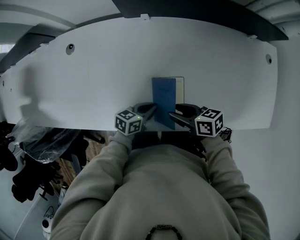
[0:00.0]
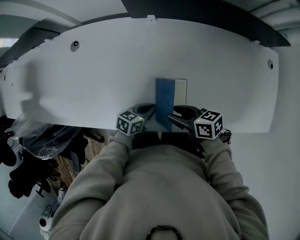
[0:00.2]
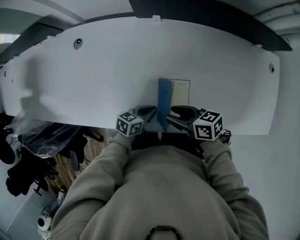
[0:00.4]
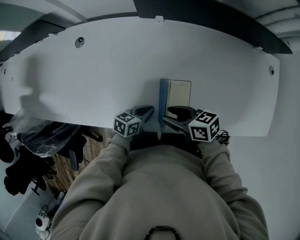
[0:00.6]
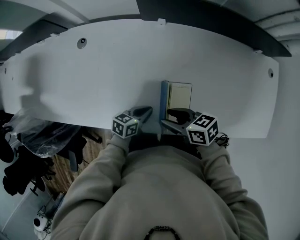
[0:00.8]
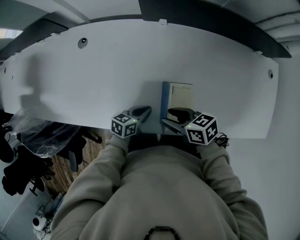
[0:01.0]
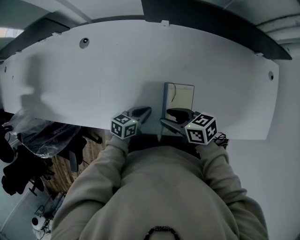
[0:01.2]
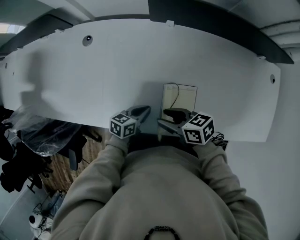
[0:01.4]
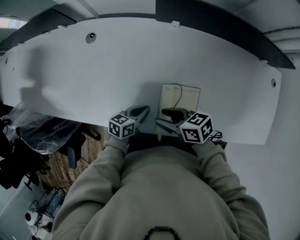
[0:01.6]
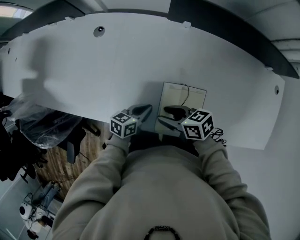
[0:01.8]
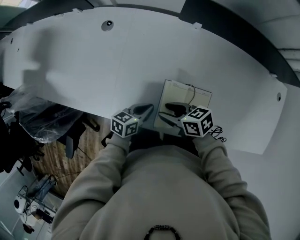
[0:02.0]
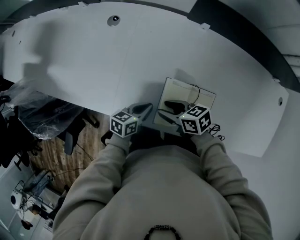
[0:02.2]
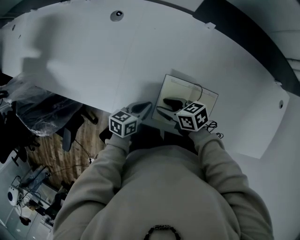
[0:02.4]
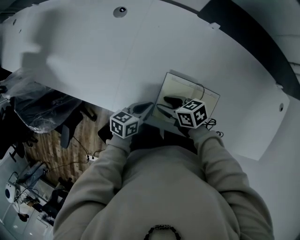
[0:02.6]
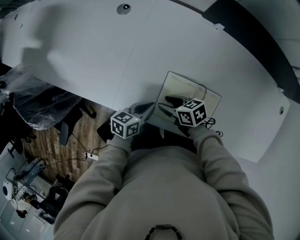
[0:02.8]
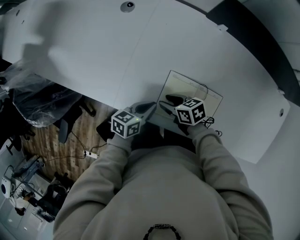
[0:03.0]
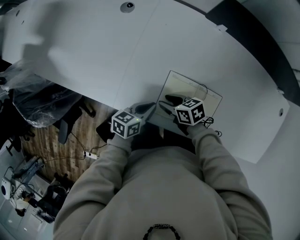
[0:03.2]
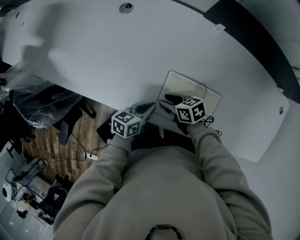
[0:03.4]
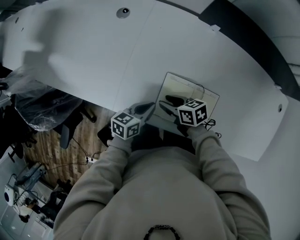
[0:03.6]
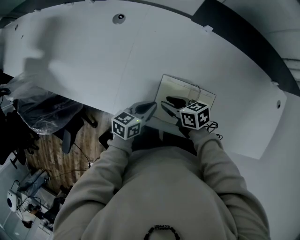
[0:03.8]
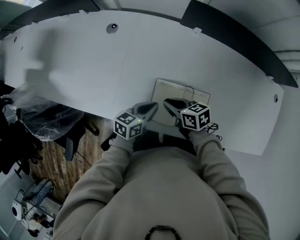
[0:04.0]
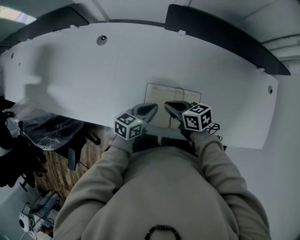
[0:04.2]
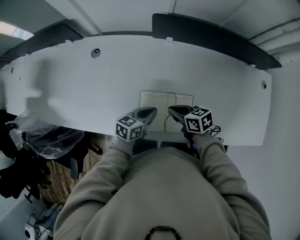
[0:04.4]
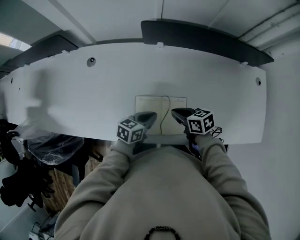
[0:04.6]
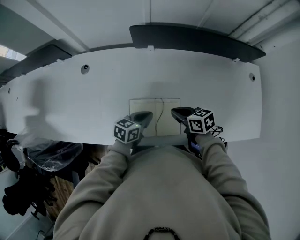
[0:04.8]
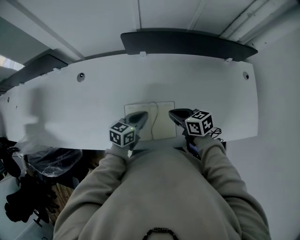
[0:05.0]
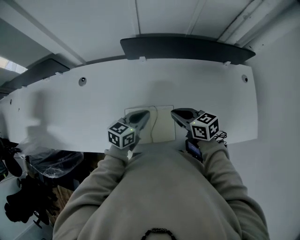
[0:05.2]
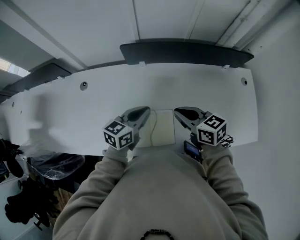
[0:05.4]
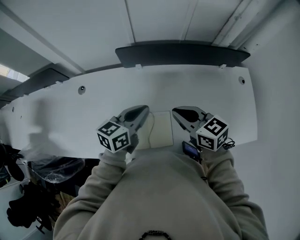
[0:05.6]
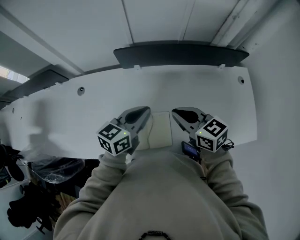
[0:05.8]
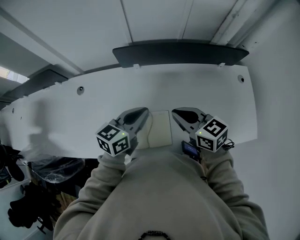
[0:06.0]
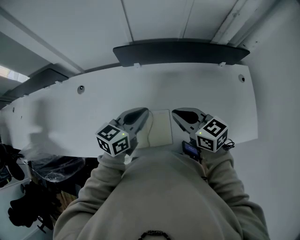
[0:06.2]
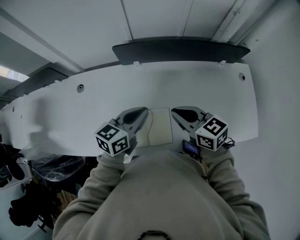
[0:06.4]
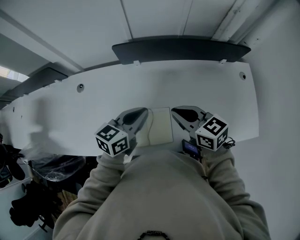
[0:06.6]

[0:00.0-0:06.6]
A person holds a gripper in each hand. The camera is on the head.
0:00.0 to 0:01.6: The left gripper ends up about 10 cm from where it was. Meanwhile the right gripper shifts by approximately 15 cm.
0:01.6 to 0:03.2: The right gripper is displaced downward by about 15 cm. The left gripper shifts by roughly 10 cm.
0:03.2 to 0:05.0: The left gripper ends up roughly 20 cm from where it was, and changes its angle by about 30 degrees. The right gripper moves about 30 cm, turns by about 30 degrees, and closes its fingers.
0:05.0 to 0:06.6: Both grippers move upward, roughly 15 cm. The right gripper swivels roughly 20 degrees.

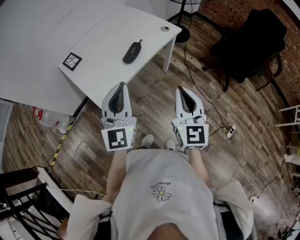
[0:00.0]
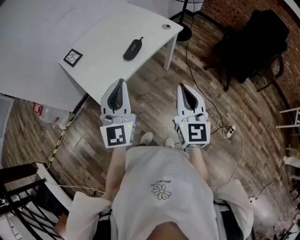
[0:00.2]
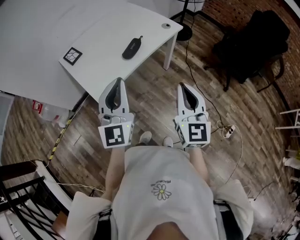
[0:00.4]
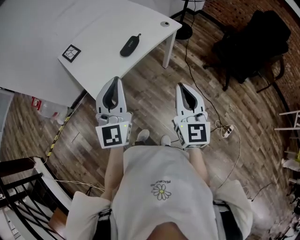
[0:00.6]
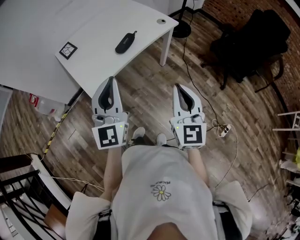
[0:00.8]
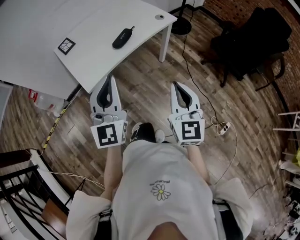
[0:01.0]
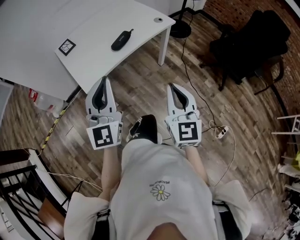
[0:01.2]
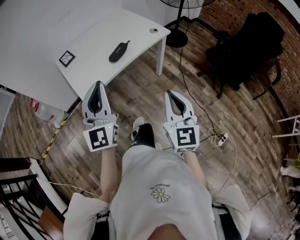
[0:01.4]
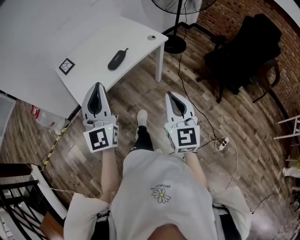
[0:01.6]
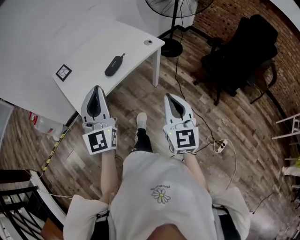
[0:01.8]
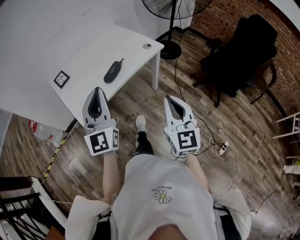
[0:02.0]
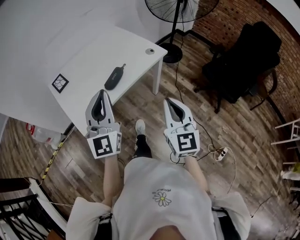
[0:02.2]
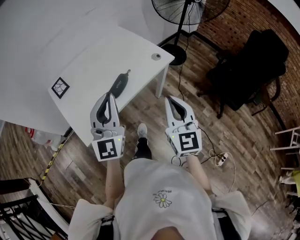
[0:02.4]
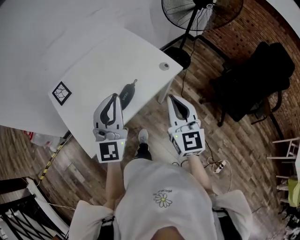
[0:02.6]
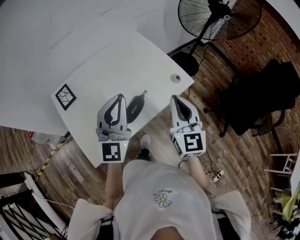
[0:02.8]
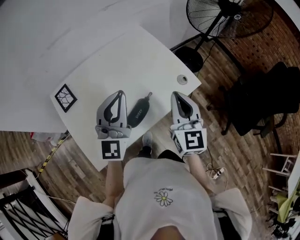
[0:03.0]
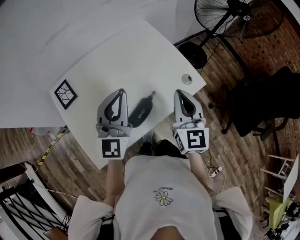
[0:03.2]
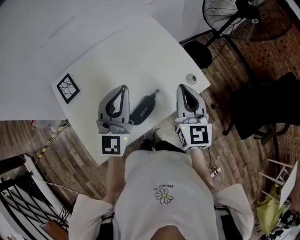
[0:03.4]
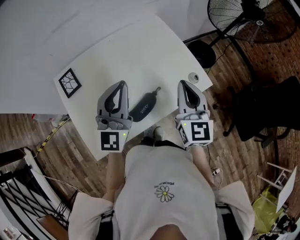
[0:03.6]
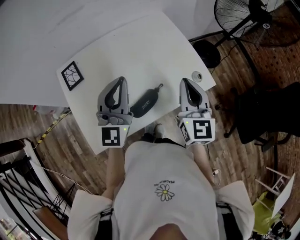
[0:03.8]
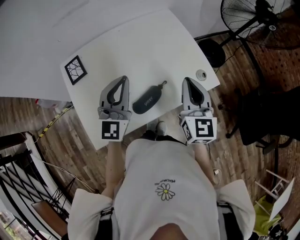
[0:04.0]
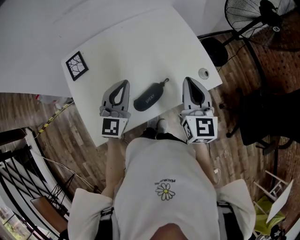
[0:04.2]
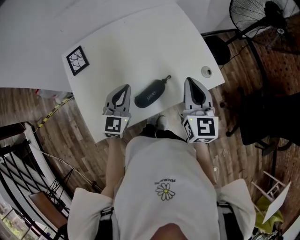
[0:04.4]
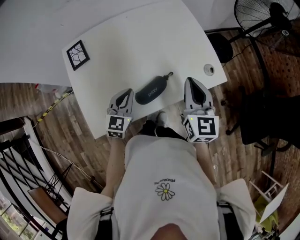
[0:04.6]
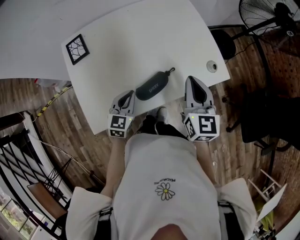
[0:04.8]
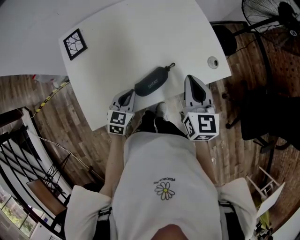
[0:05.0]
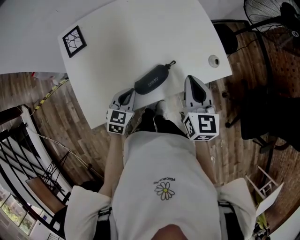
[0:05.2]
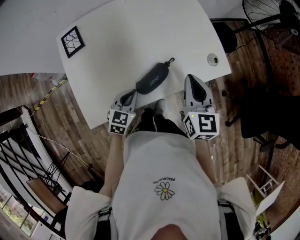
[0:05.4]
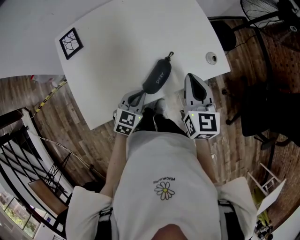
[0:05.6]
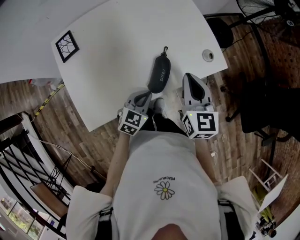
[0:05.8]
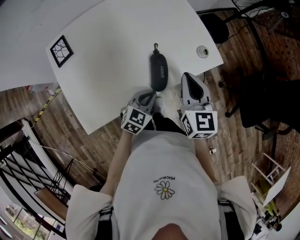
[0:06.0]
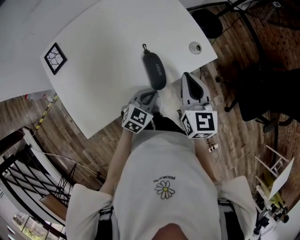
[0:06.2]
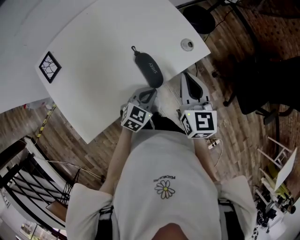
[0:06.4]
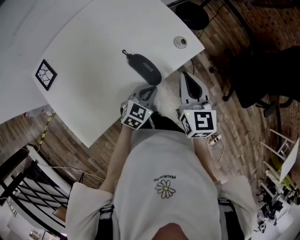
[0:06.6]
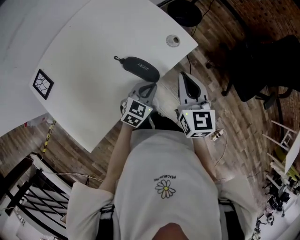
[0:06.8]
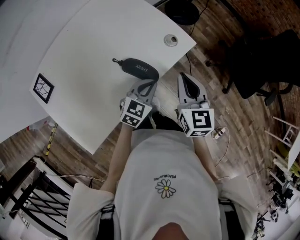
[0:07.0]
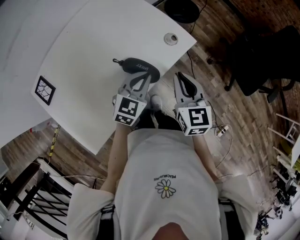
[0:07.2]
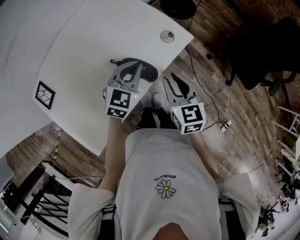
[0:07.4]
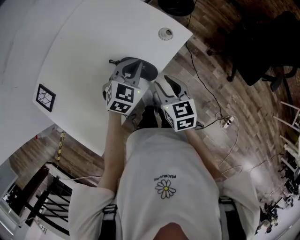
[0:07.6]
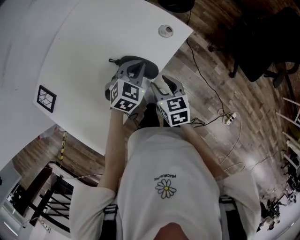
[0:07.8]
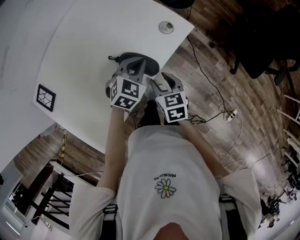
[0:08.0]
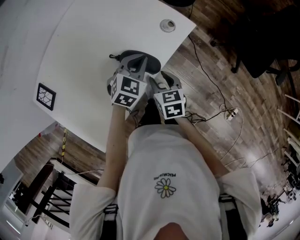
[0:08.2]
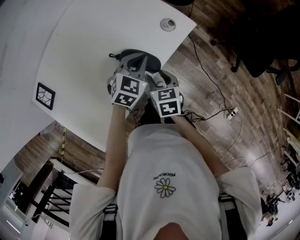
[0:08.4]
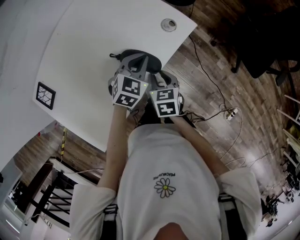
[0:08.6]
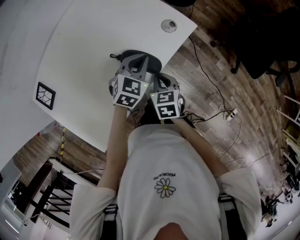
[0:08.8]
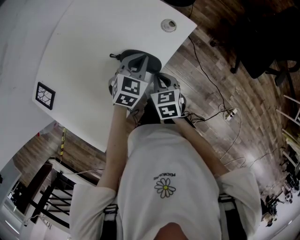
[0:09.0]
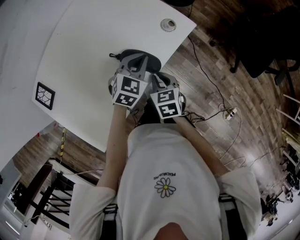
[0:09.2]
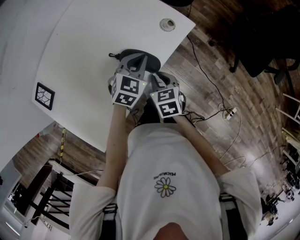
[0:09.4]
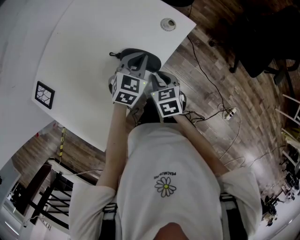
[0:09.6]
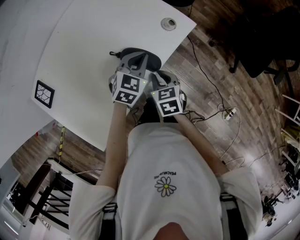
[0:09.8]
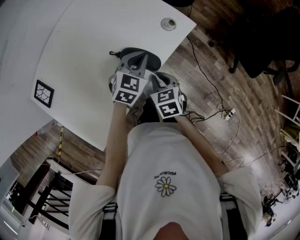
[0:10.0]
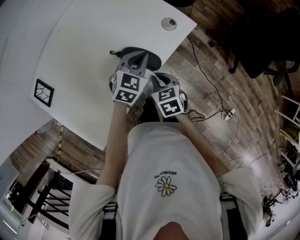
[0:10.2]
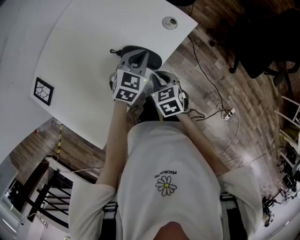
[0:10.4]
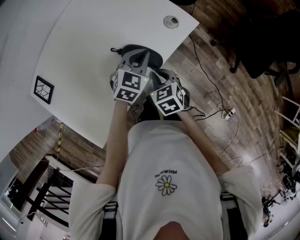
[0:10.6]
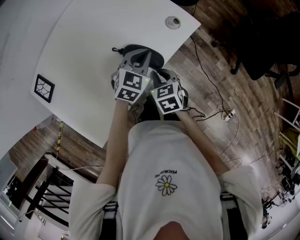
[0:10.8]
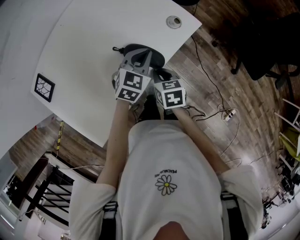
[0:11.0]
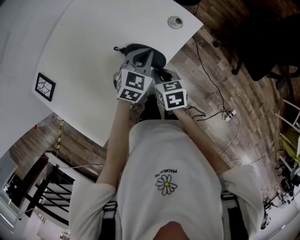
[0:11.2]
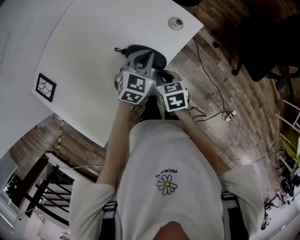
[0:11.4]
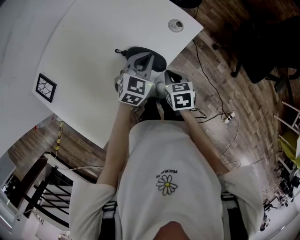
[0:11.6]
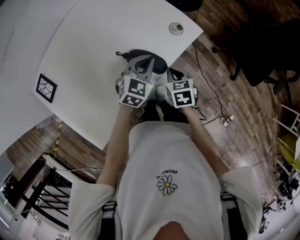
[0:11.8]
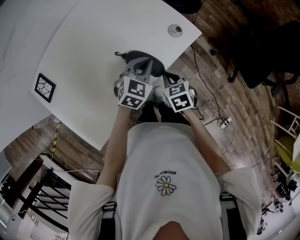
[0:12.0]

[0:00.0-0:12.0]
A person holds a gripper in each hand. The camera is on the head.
0:00.0 to 0:01.6: The left gripper travels to the right by some 5 cm, while the right gripper goes roughly 10 cm to the right.
0:01.6 to 0:03.0: Both grippers move forward, some 40 cm.
0:03.0 to 0:04.4: The left gripper moves downward, roughly 20 cm, and rotates some 30 degrees; the right gripper ends up about 5 cm from where it was.
0:04.4 to 0:06.0: The left gripper shifts about 20 cm to the right, downward and backward, and swivels roughly 30 degrees; the right gripper shifts some 5 cm downward.
0:06.0 to 0:07.6: The right gripper travels downward by approximately 10 cm, rotates approximately 20 degrees, and opens its fingers. Meanwhile the left gripper heads forward and upward, covering some 15 cm, and rotates about 20 degrees.
0:07.6 to 0:09.0: The right gripper moves downward, approximately 5 cm, and closes up.
0:09.0 to 0:12.0: There are only small adjustments of the grippers.

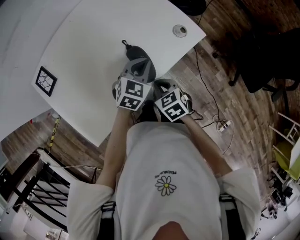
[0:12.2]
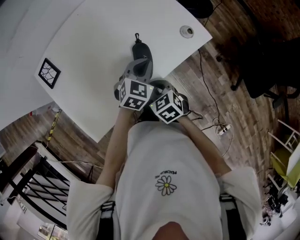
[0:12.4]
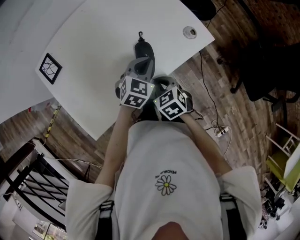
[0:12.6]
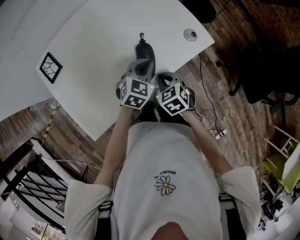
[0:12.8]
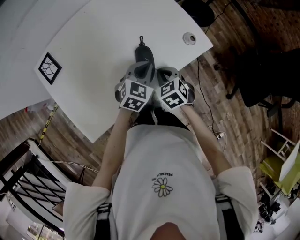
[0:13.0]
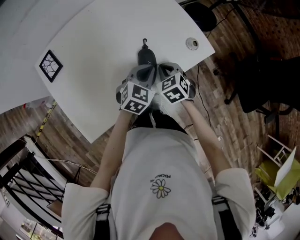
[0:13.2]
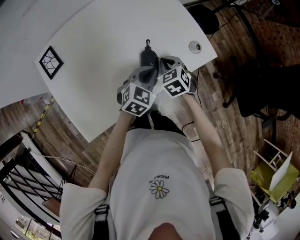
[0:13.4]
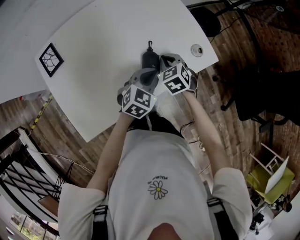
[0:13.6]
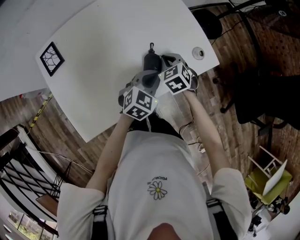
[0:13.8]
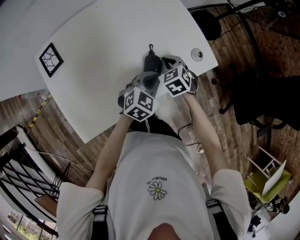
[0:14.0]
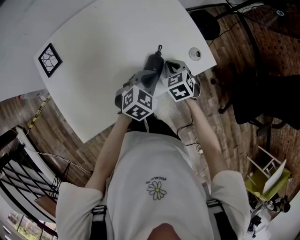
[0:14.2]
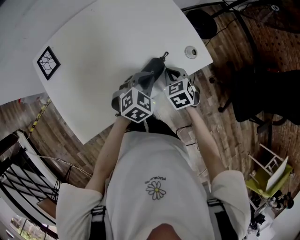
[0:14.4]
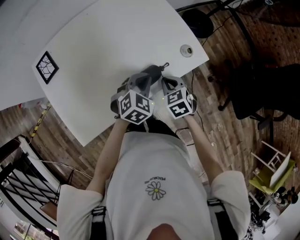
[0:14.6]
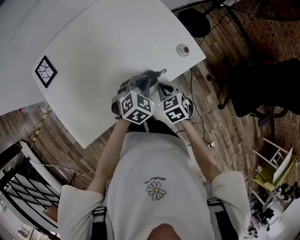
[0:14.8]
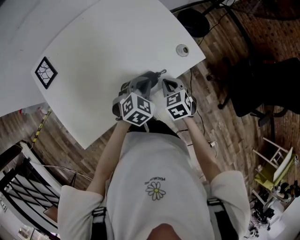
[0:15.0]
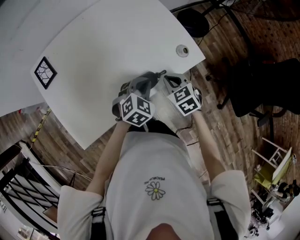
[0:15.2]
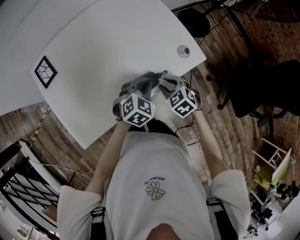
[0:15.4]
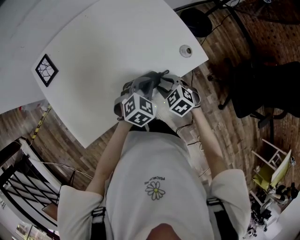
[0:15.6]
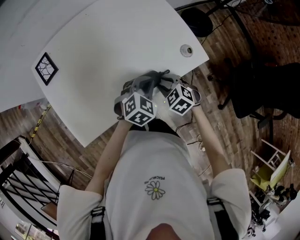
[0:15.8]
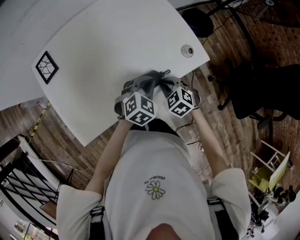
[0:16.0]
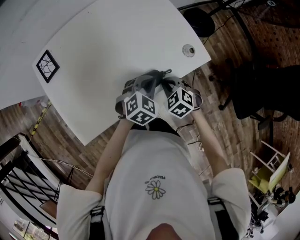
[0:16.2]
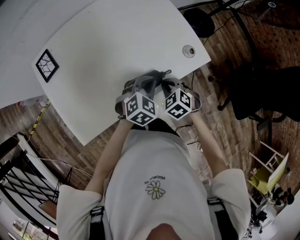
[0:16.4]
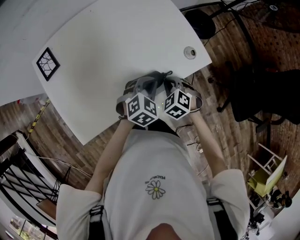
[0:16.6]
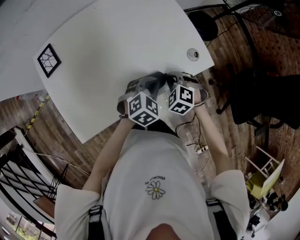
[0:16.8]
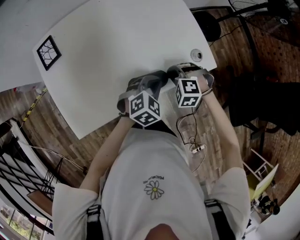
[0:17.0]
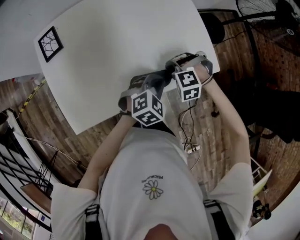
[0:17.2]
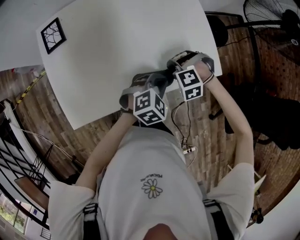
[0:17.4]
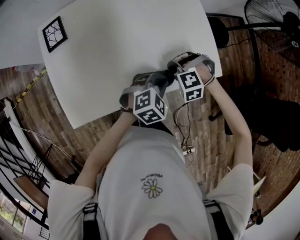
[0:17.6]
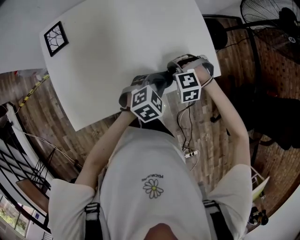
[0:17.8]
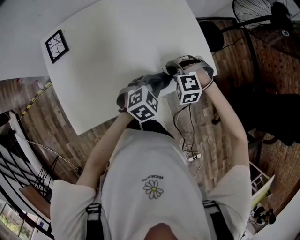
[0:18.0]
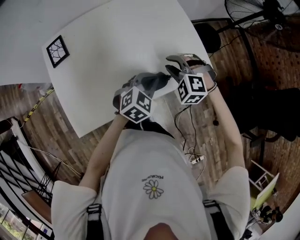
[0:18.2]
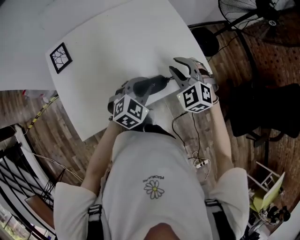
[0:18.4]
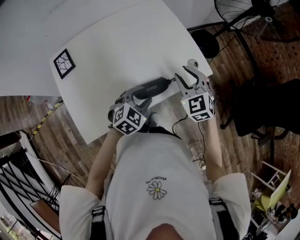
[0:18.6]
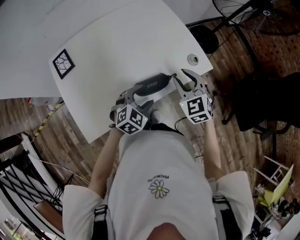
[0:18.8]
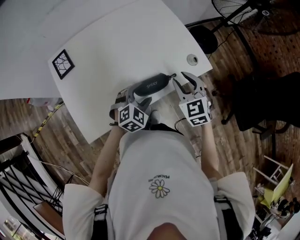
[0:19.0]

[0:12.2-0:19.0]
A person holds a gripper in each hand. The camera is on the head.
0:12.2 to 0:13.6: The right gripper is displaced forward by approximately 15 cm, and turns by some 20 degrees.
0:13.6 to 0:15.0: The right gripper travels backward and to the right by some 10 cm.
0:15.0 to 0:16.2: The right gripper swivels about 30 degrees, and opens, then closes once more.
0:16.2 to 0:17.6: The right gripper ends up roughly 5 cm from where it was, and twists about 70 degrees counterclockwise, seen from behind.
0:17.6 to 0:19.0: The right gripper shifts roughly 15 cm upward, rolls clockwise, seen from behind, by some 70 degrees, and opens its fingers; the left gripper shifts by about 10 cm, and opens its fingers.
